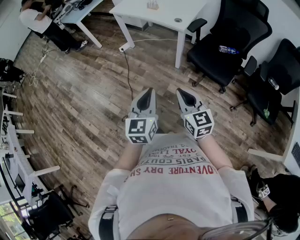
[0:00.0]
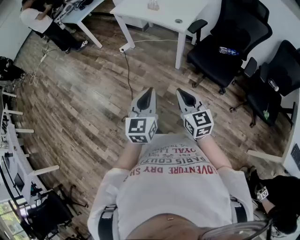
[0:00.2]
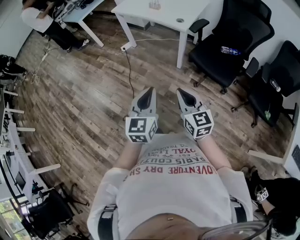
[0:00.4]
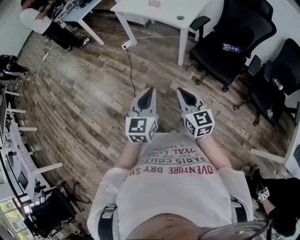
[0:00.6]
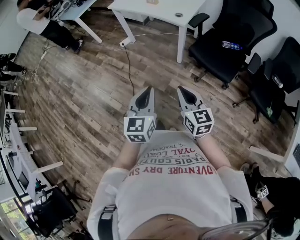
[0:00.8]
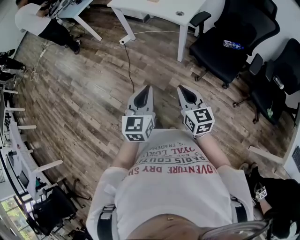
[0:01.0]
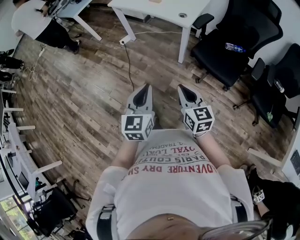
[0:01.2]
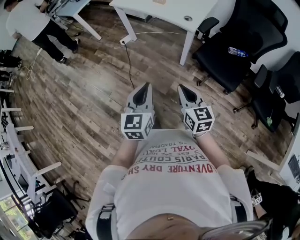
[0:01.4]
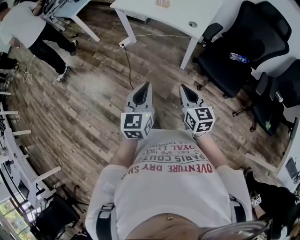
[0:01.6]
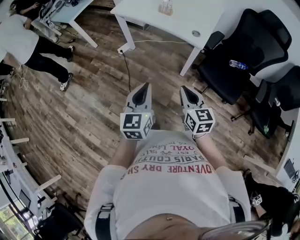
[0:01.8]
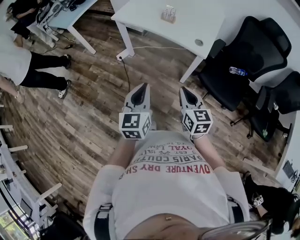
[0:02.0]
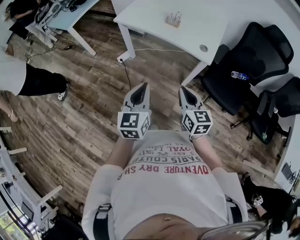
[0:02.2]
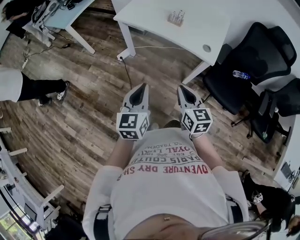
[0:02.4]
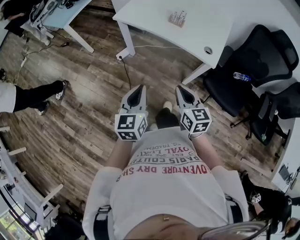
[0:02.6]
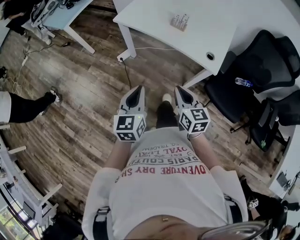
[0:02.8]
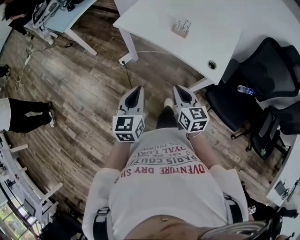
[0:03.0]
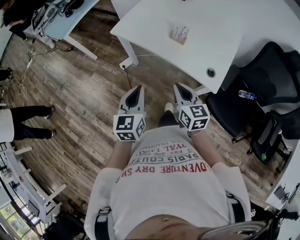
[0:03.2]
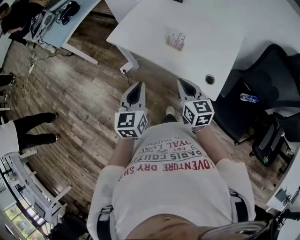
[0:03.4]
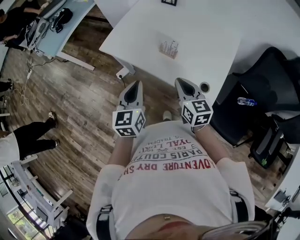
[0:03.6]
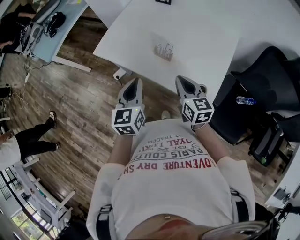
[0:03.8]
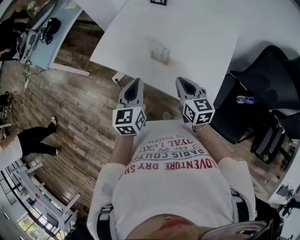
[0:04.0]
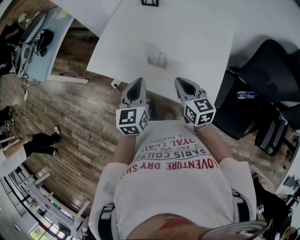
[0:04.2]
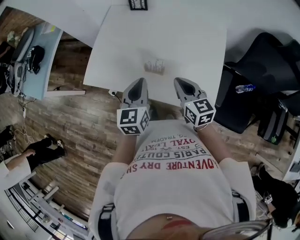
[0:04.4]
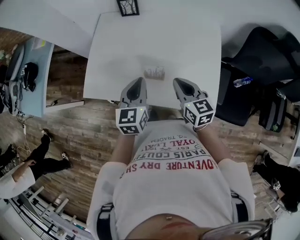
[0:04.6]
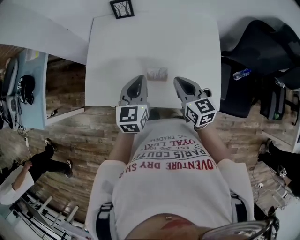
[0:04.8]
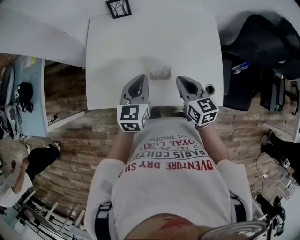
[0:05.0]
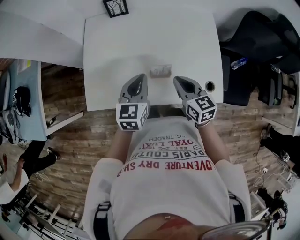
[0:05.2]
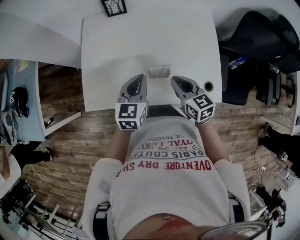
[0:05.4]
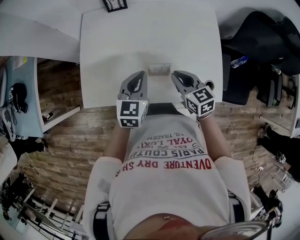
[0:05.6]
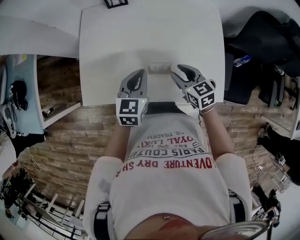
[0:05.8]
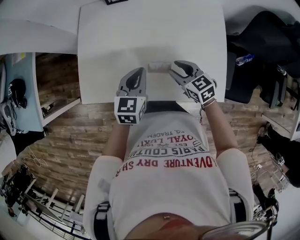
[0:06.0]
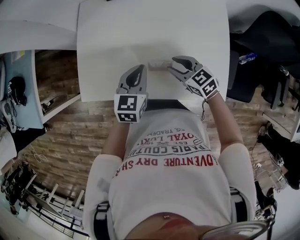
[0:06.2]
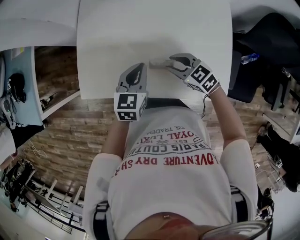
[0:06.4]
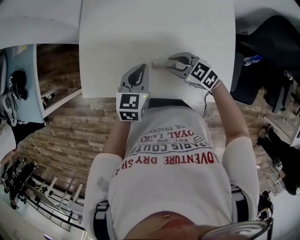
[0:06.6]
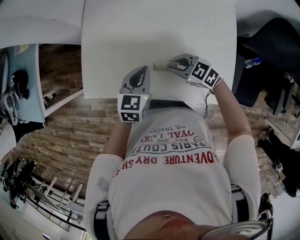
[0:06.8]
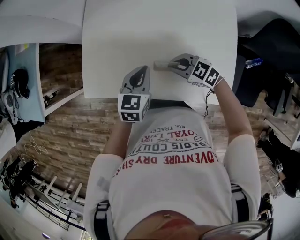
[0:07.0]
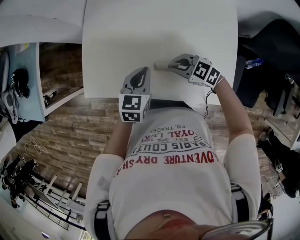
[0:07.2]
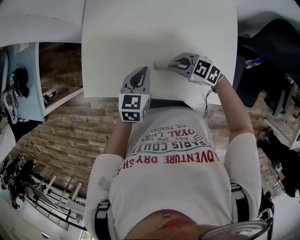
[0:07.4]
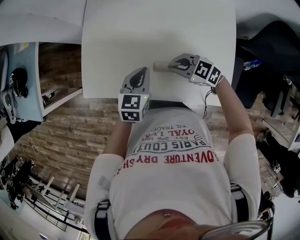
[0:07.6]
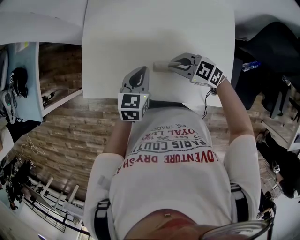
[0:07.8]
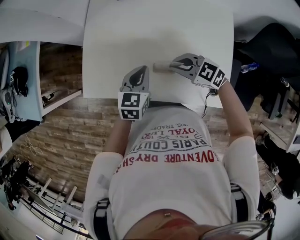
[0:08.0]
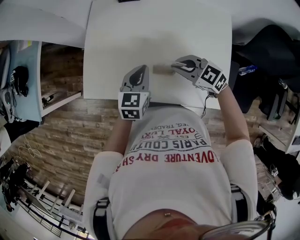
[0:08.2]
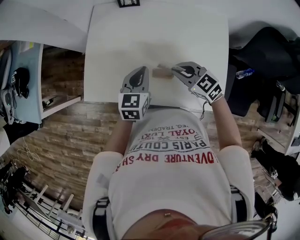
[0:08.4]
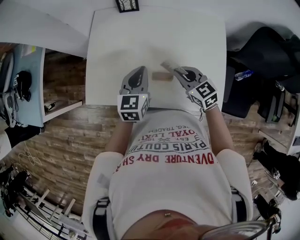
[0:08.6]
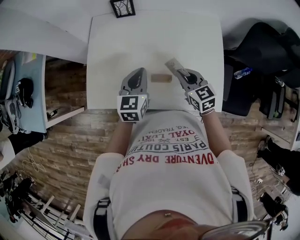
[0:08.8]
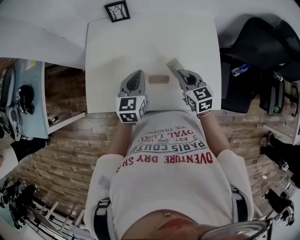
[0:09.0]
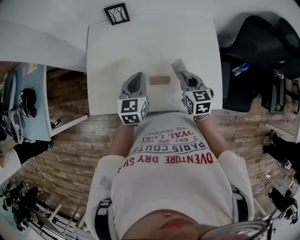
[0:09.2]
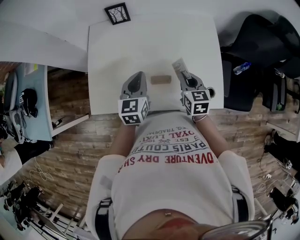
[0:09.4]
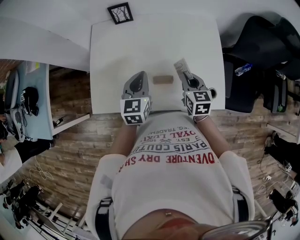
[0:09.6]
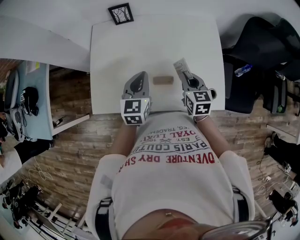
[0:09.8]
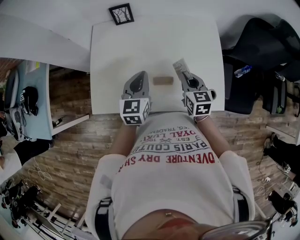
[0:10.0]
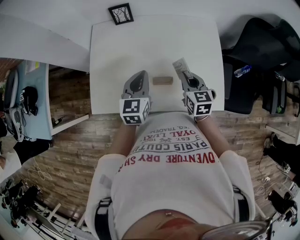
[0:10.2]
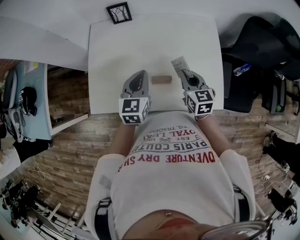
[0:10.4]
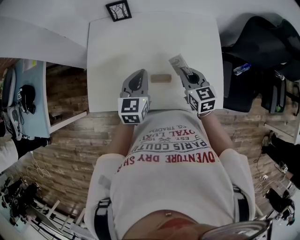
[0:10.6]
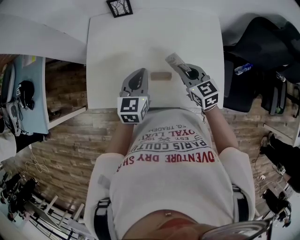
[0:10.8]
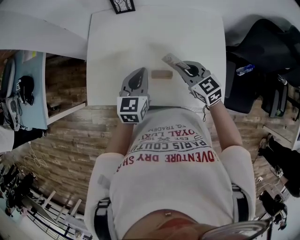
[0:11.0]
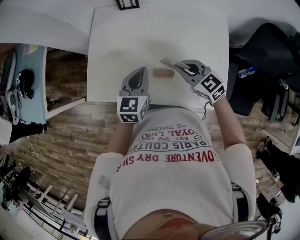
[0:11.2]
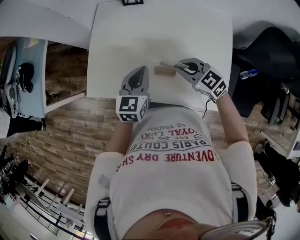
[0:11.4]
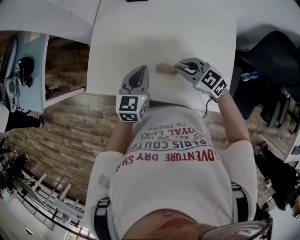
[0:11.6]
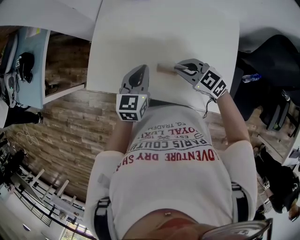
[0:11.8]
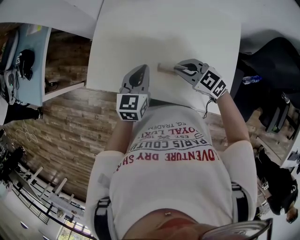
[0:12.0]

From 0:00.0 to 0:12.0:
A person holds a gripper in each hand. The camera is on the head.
From 0:00.0 to 0:01.6: Both grippers travel together forward, approximately 20 cm.
From 0:01.6 to 0:03.0: Both grippers move forward, some 30 cm.
From 0:03.0 to 0:04.4: The two grippers go approximately 35 cm forward and to the right.
From 0:04.4 to 0:06.0: The left gripper moves forward and downward, about 10 cm, and changes its angle by about 20 degrees. Meanwhile the right gripper goes some 10 cm downward and forward, and opens its fingers.
From 0:06.0 to 0:07.6: The right gripper turns by about 40 degrees, and closes its fingers.
From 0:07.6 to 0:09.0: The left gripper shifts some 5 cm upward, while the right gripper moves approximately 10 cm, and swivels about 50 degrees.
From 0:09.0 to 0:10.4: The grippers move only a little.
From 0:10.4 to 0:12.0: The right gripper shifts by about 10 cm, and rotates approximately 60 degrees.

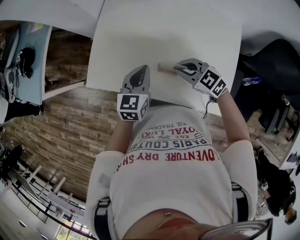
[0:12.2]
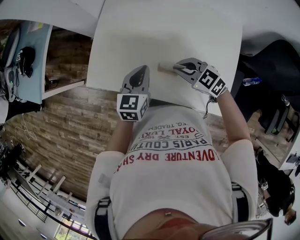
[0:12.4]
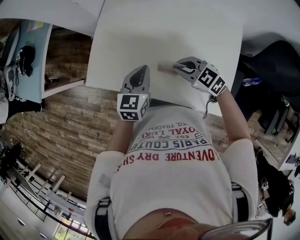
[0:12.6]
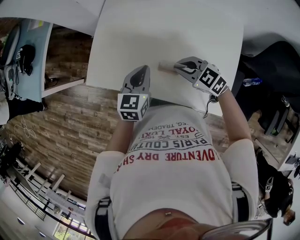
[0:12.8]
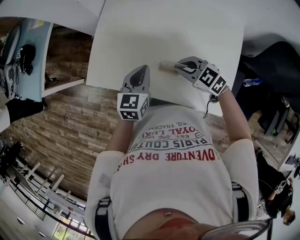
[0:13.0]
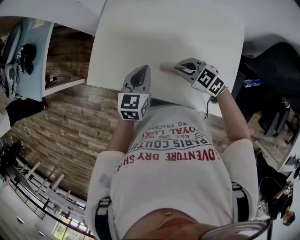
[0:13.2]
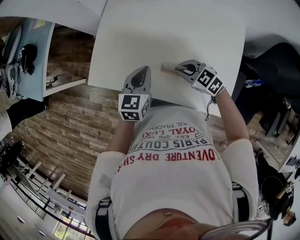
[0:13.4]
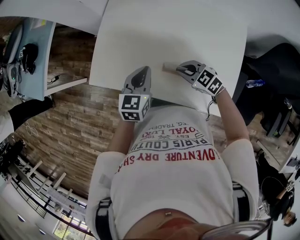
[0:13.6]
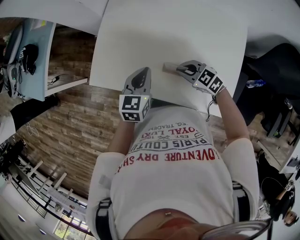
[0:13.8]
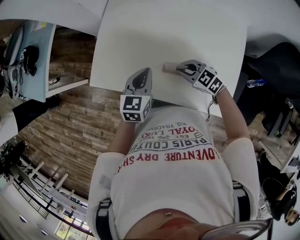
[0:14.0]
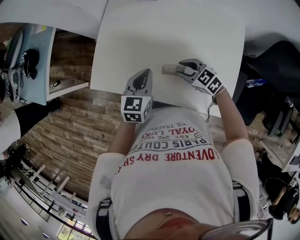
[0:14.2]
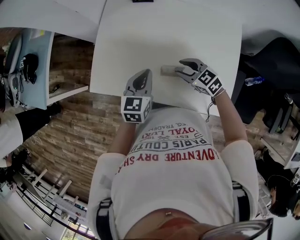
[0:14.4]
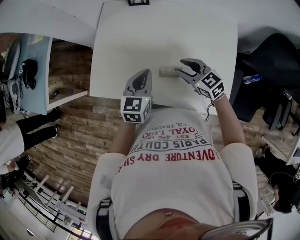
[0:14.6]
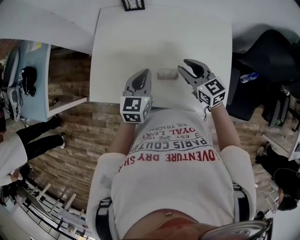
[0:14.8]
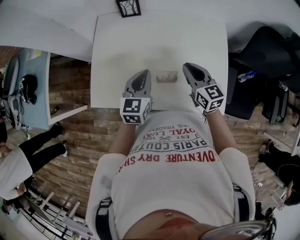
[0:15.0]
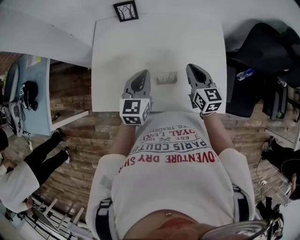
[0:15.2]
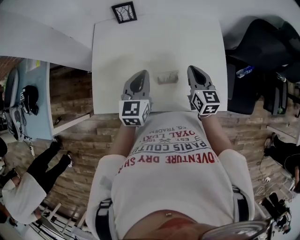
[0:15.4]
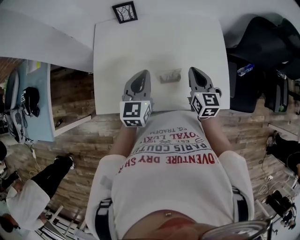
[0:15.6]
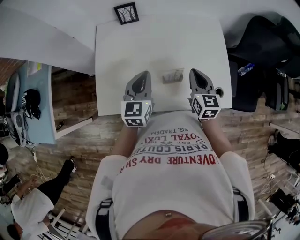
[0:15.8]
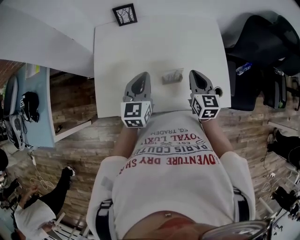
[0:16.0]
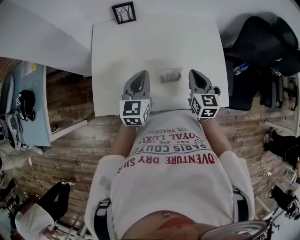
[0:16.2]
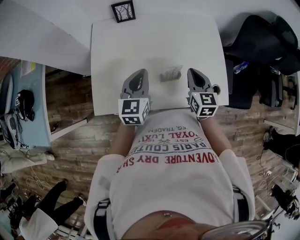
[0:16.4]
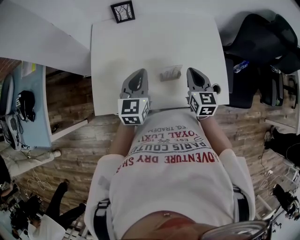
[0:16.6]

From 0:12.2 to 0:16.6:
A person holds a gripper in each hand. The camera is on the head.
From 0:12.2 to 0:13.6: The right gripper heads downward, covering approximately 5 cm.
From 0:13.6 to 0:15.2: The left gripper travels upward by some 5 cm. Meanwhile the right gripper shifts about 10 cm upward, turns by some 70 degrees, and opens, then closes once more.
From 0:15.2 to 0:16.6: The right gripper shifts by some 5 cm.

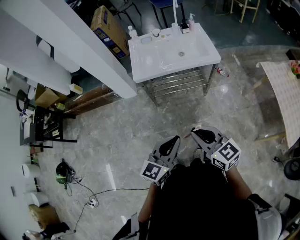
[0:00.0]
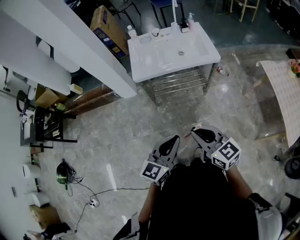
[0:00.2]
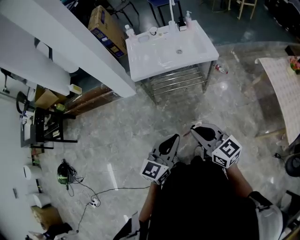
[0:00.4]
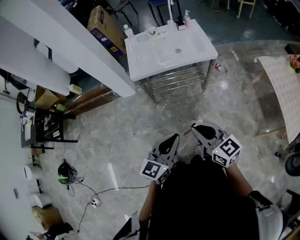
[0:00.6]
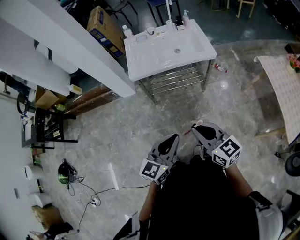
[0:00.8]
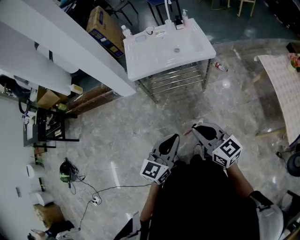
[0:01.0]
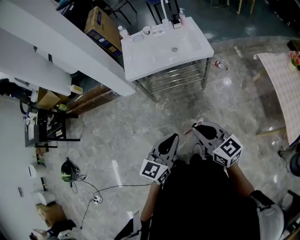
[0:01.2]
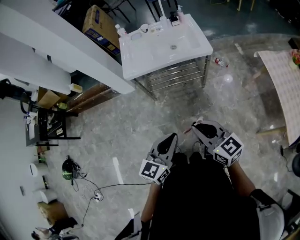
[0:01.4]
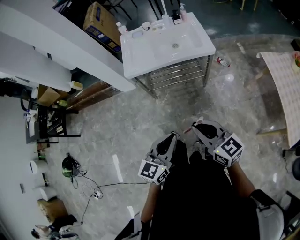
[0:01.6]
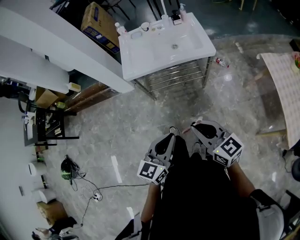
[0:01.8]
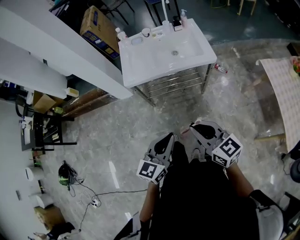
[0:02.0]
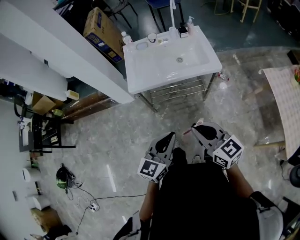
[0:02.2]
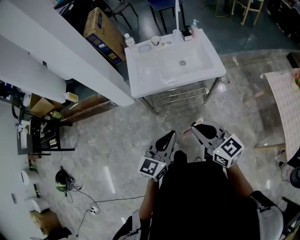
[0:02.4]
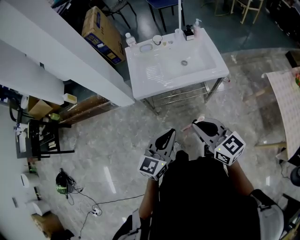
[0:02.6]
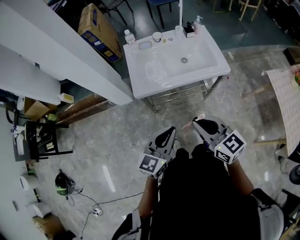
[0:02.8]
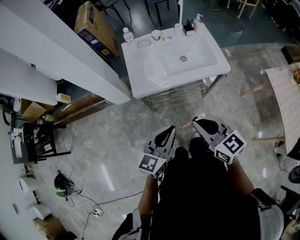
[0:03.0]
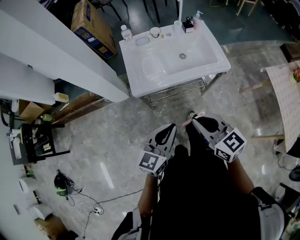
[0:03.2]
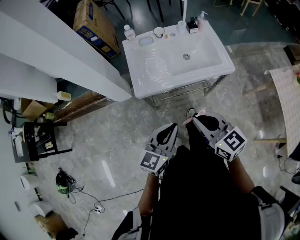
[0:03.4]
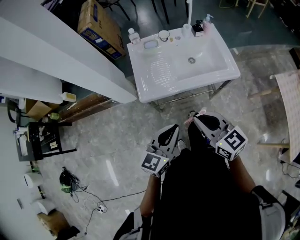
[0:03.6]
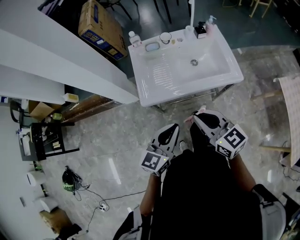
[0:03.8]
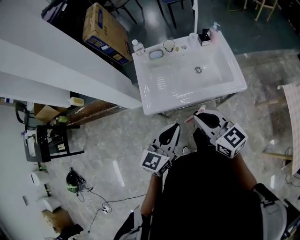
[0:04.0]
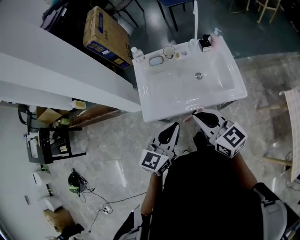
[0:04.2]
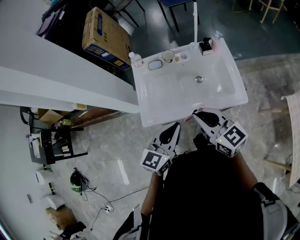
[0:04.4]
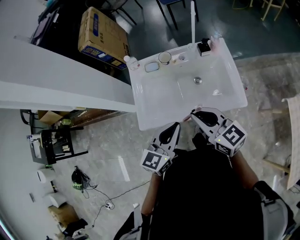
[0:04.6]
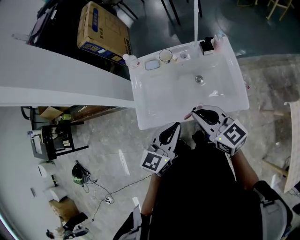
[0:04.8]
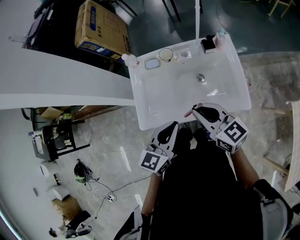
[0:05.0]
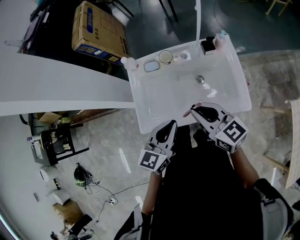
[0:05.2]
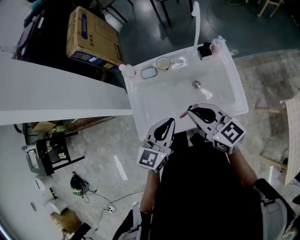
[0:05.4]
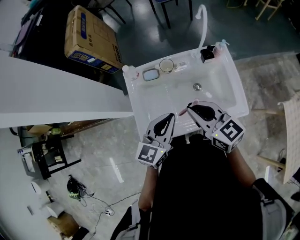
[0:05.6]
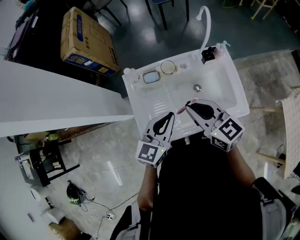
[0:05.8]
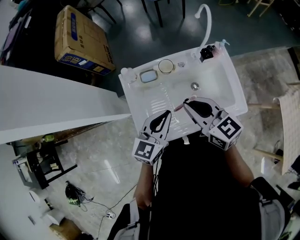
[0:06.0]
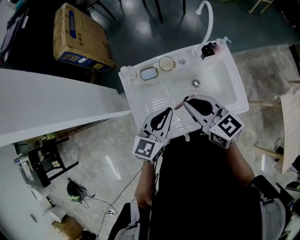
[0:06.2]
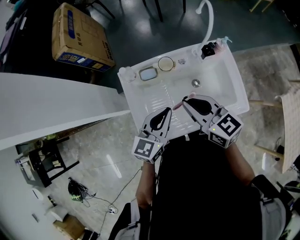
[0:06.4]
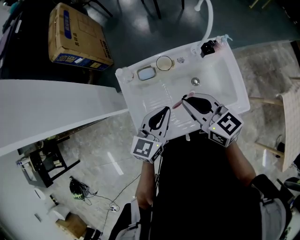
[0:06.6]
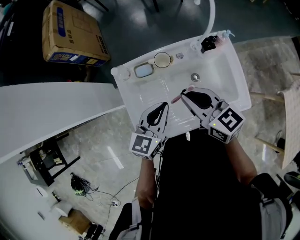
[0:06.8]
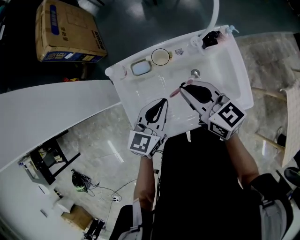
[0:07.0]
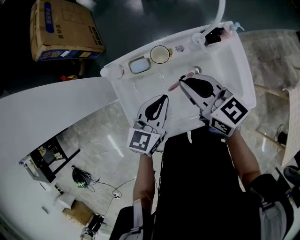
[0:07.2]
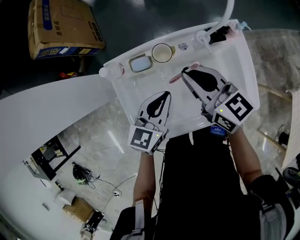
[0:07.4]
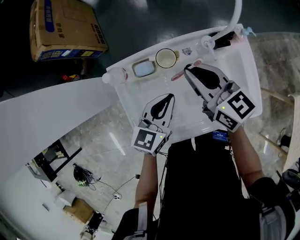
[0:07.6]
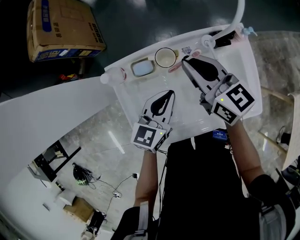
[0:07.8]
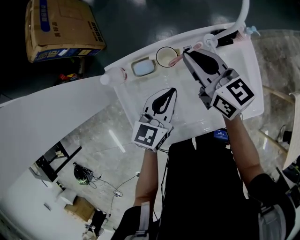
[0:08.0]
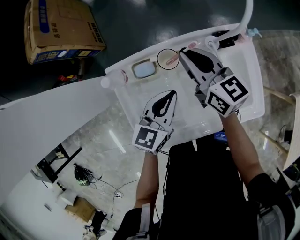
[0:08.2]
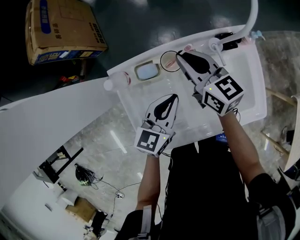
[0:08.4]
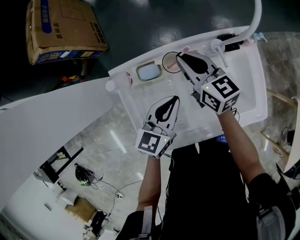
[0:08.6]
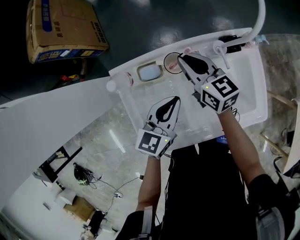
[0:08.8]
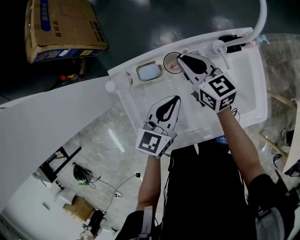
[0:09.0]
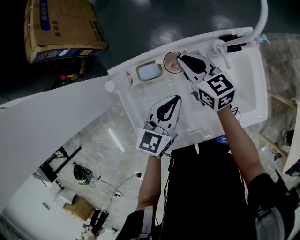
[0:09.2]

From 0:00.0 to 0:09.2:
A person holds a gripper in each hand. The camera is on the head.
From 0:00.0 to 0:01.6: The two grippers go roughly 10 cm to the right.
From 0:01.6 to 0:03.0: The two grippers go roughly 25 cm forward and to the left.
From 0:03.0 to 0:04.6: The right gripper goes roughly 30 cm forward. Meanwhile the left gripper heads forward and to the right, covering approximately 25 cm.
From 0:04.6 to 0:06.2: The right gripper is displaced forward and to the left by about 15 cm. The left gripper travels forward by some 15 cm.
From 0:06.2 to 0:07.6: The left gripper heads downward and forward, covering roughly 15 cm. Meanwhile the right gripper shifts approximately 15 cm forward and downward.
From 0:07.6 to 0:09.2: The right gripper travels downward and forward by some 15 cm.
